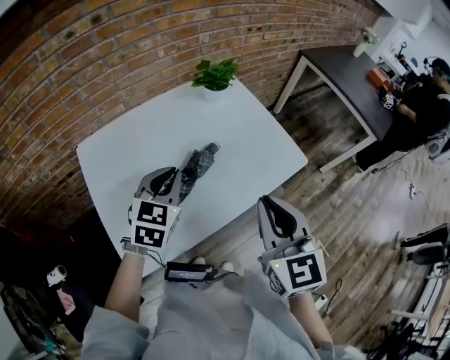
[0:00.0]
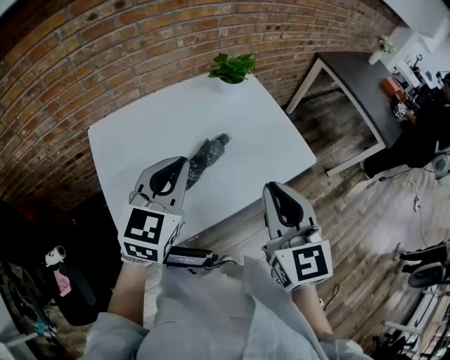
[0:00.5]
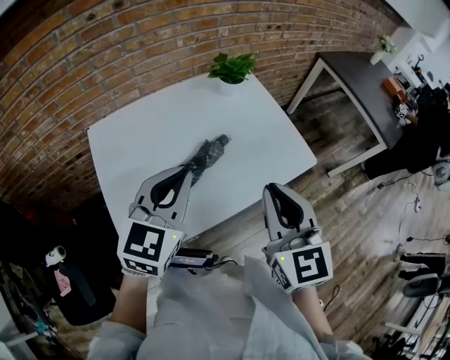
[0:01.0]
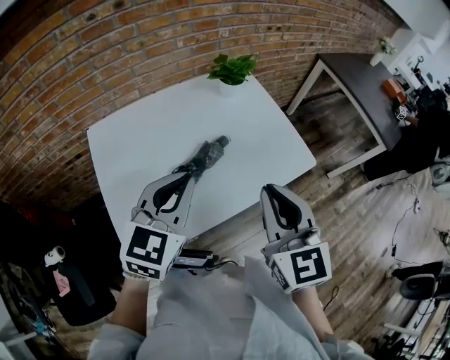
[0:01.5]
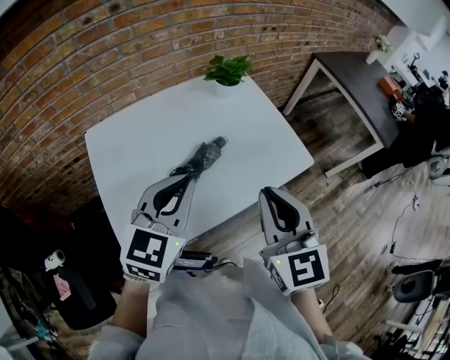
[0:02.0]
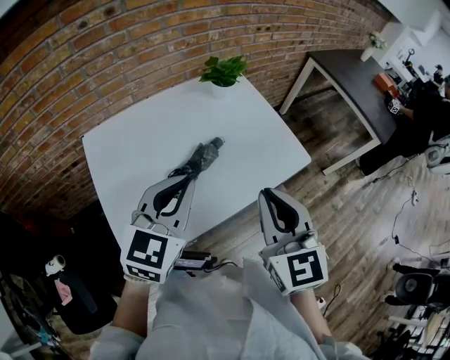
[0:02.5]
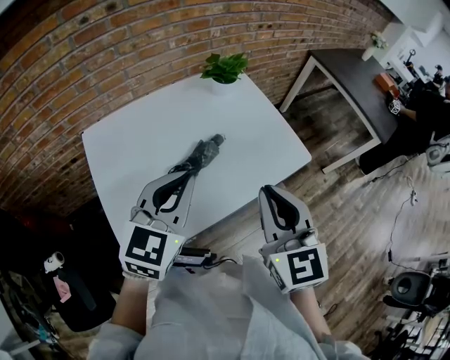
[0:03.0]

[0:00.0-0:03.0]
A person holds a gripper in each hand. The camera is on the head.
0:00.0 to 0:01.5: The left gripper moves upward and backward, approximately 10 cm.
0:01.5 to 0:03.0: Both grippers stay about where they are.

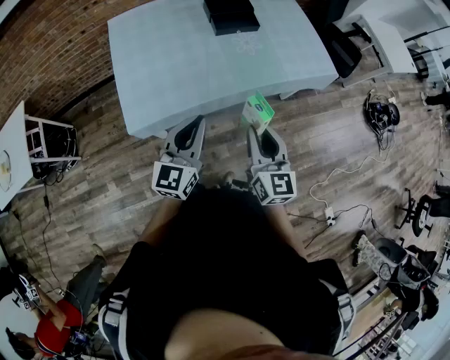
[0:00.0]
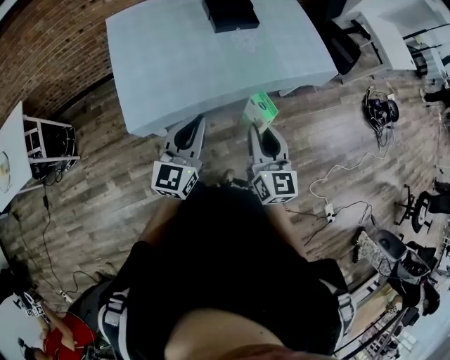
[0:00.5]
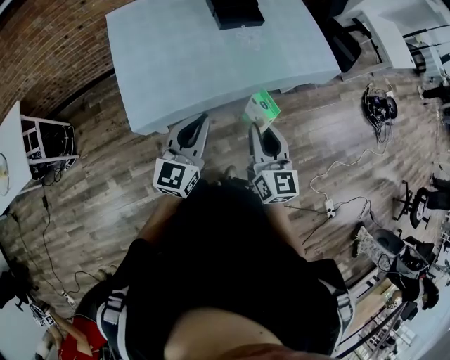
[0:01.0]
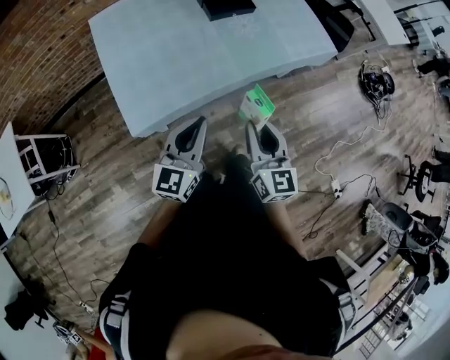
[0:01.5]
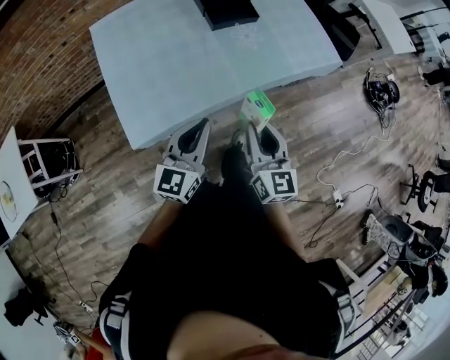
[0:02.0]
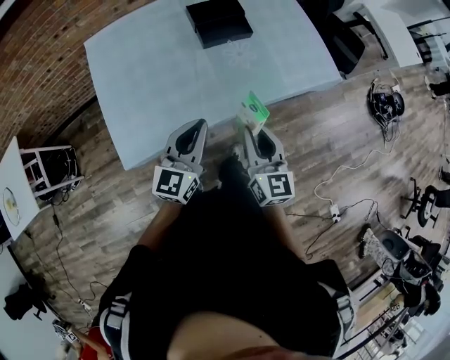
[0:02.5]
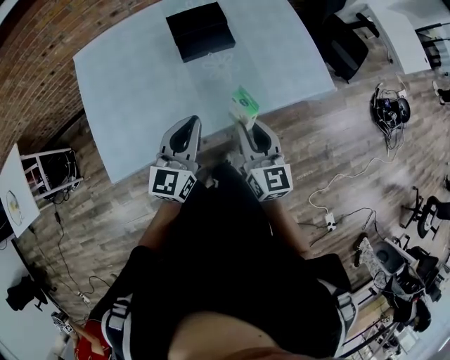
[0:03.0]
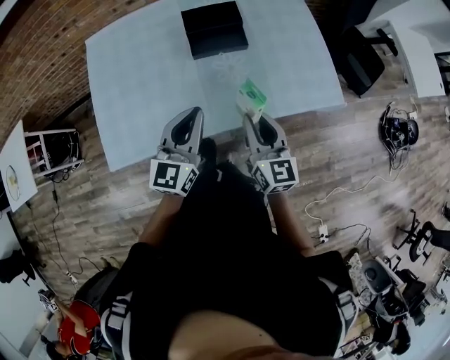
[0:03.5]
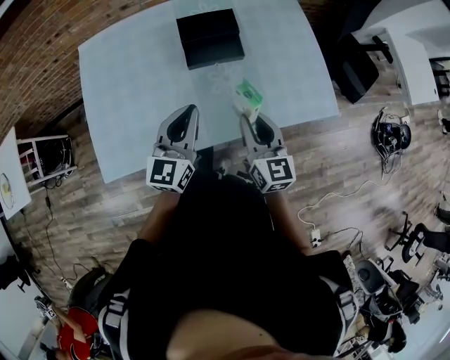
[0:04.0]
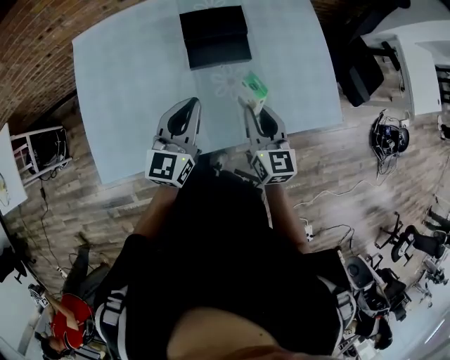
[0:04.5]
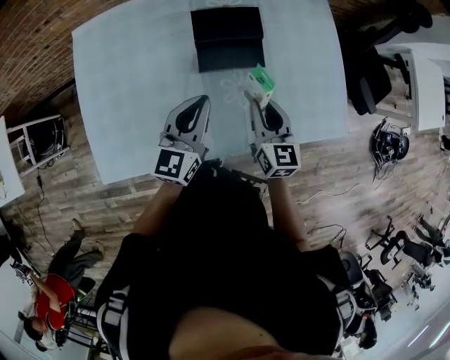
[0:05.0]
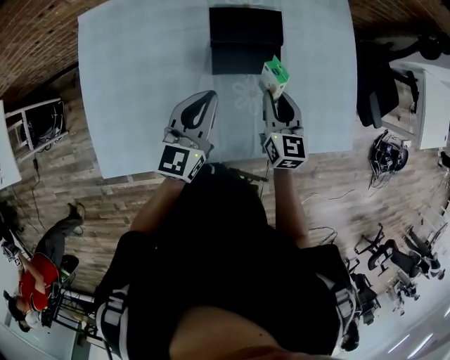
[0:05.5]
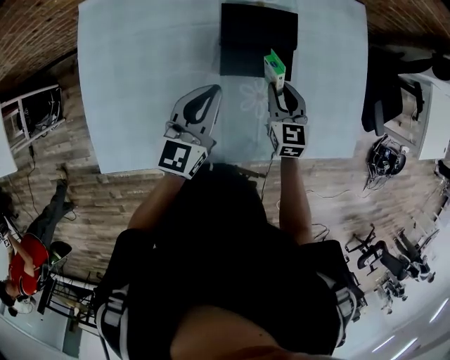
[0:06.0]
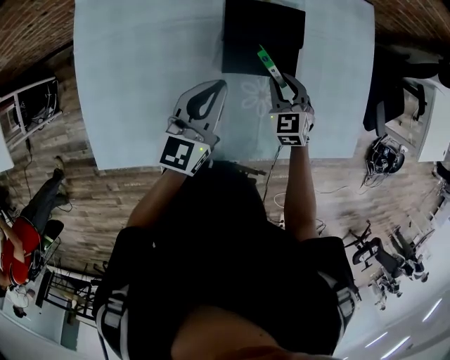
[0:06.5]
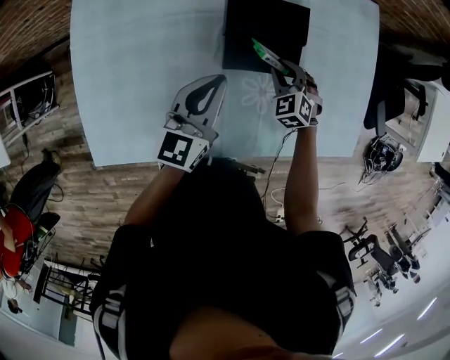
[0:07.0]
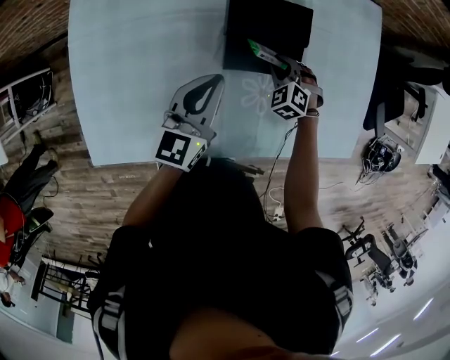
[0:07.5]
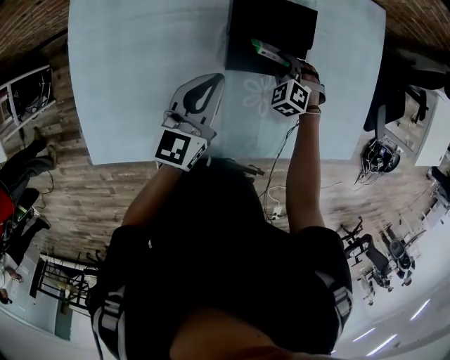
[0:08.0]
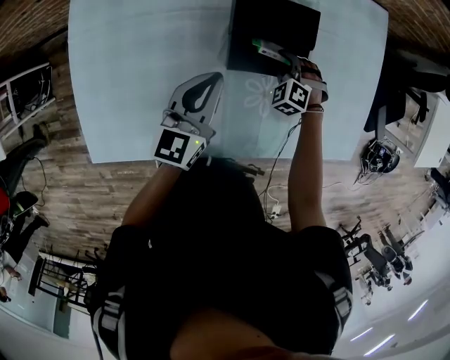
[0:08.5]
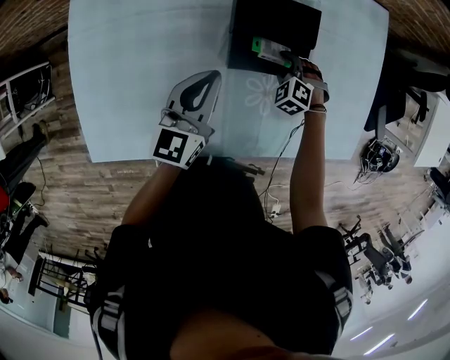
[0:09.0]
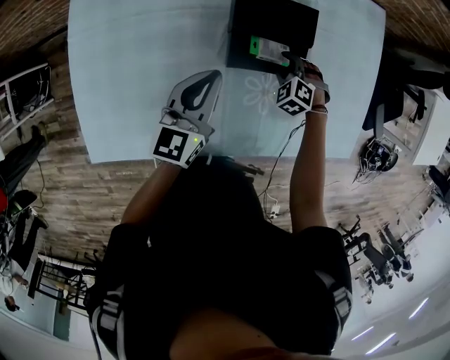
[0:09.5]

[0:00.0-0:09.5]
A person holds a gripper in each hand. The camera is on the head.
0:00.0 to 0:02.0: The grippers both shift forward by some 5 cm.
0:02.0 to 0:04.0: Both grippers move forward and to the right, roughly 30 cm.
0:04.0 to 0:05.5: The right gripper travels forward and downward by about 25 cm. Meanwhile the left gripper heads forward, covering approximately 15 cm.
0:05.5 to 0:07.5: The right gripper shifts roughly 20 cm downward and forward, and twists about 60 degrees counterclockwise, seen from behind. The left gripper goes roughly 10 cm forward and downward.
0:07.5 to 0:09.5: The right gripper opens up.

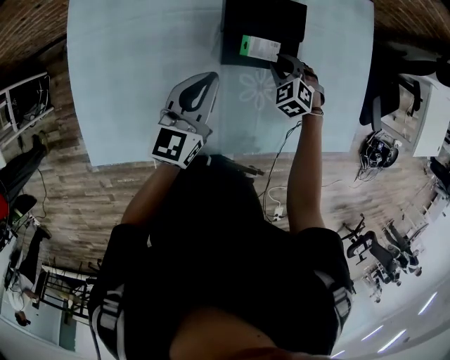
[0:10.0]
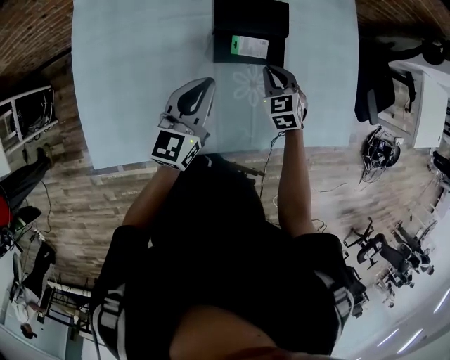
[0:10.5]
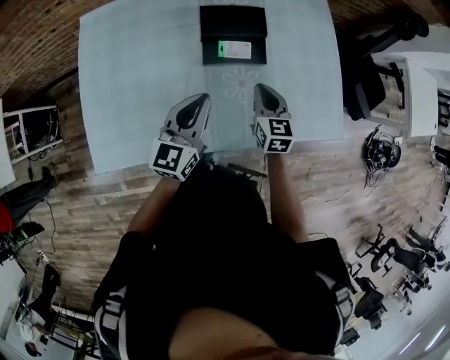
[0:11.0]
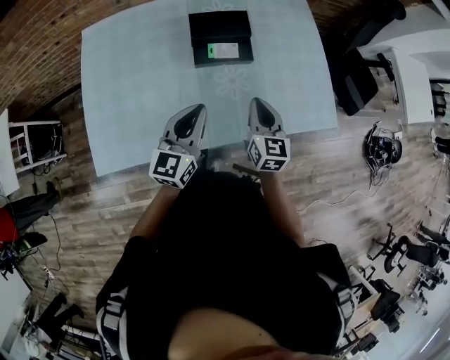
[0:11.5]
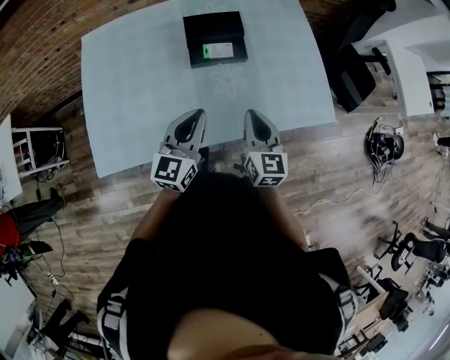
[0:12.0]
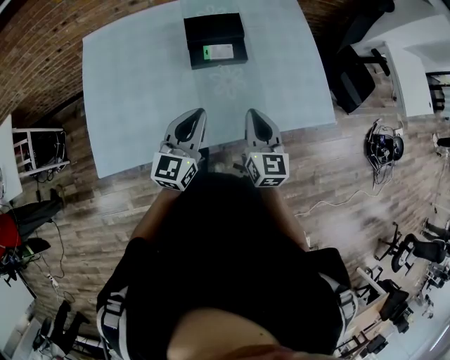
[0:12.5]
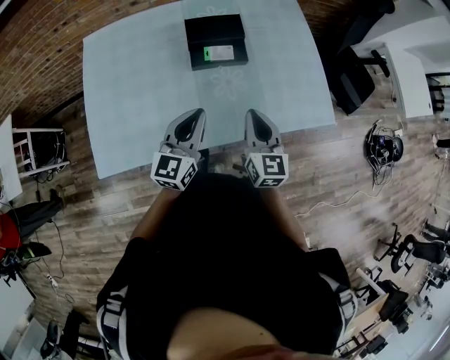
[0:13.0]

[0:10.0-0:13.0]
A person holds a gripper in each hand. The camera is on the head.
0:10.0 to 0:11.5: Both grippers move backward and upward, some 25 cm. The right gripper angles its fingers upward, by some 40 degrees, and closes.
0:11.5 to 0:13.0: The right gripper is displaced backward by approximately 5 cm.

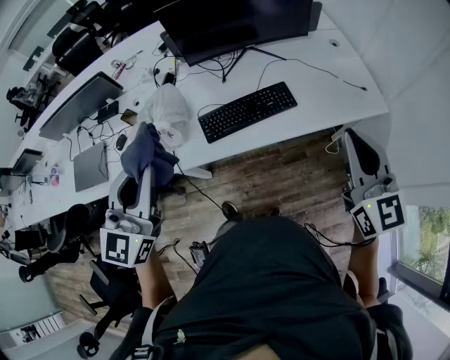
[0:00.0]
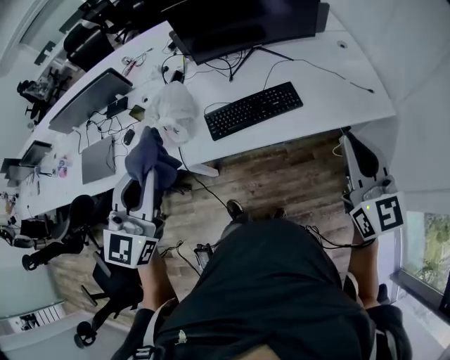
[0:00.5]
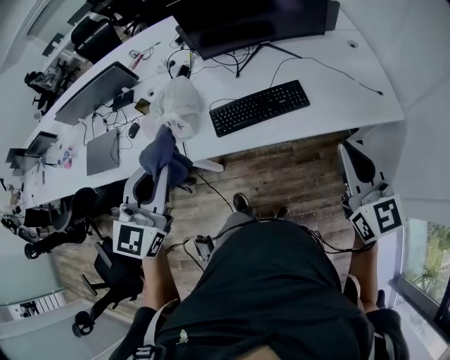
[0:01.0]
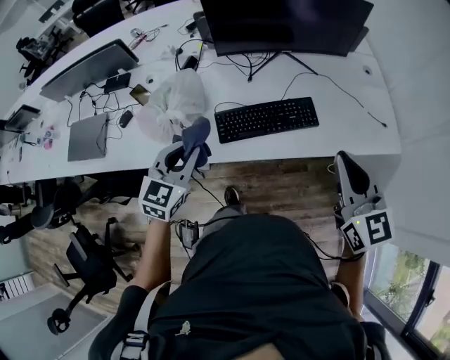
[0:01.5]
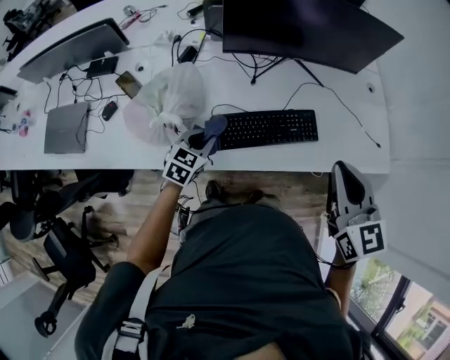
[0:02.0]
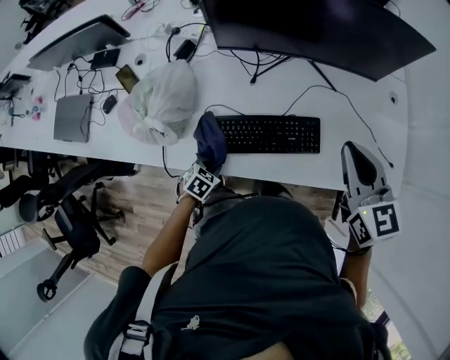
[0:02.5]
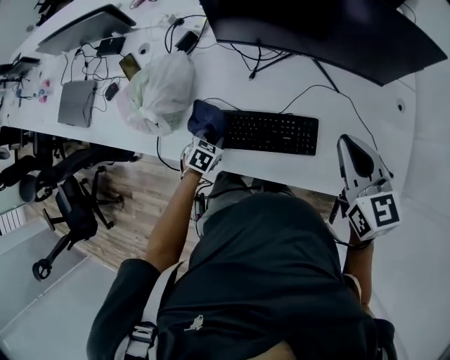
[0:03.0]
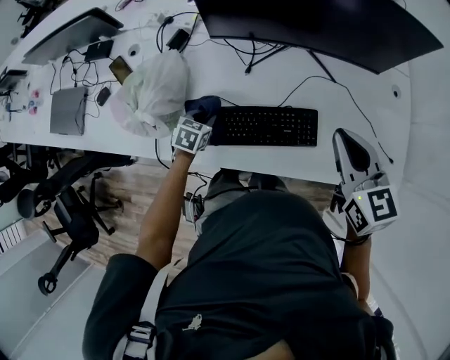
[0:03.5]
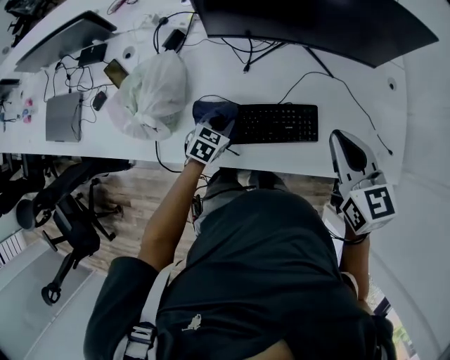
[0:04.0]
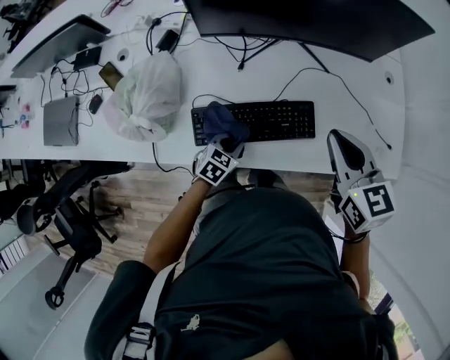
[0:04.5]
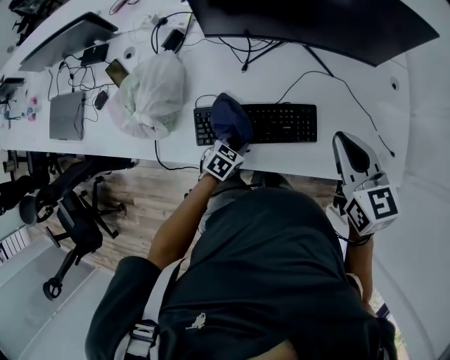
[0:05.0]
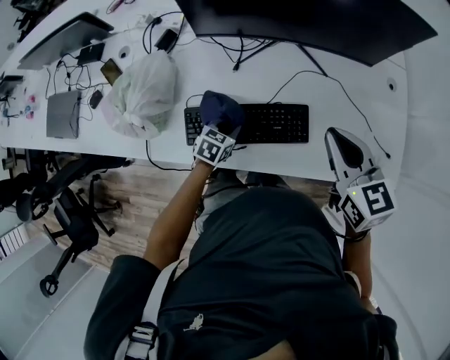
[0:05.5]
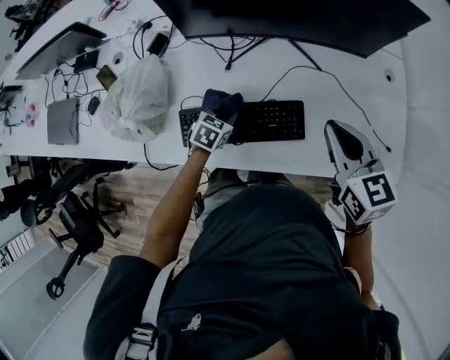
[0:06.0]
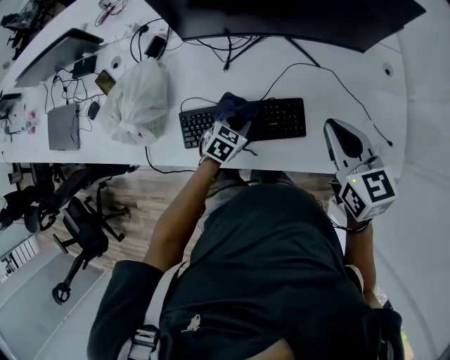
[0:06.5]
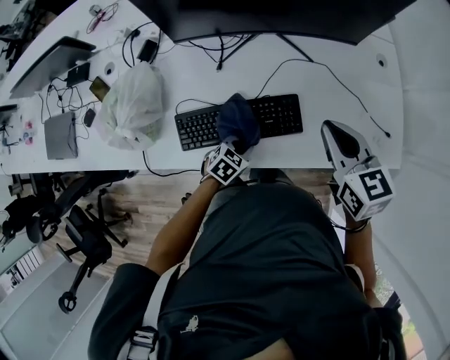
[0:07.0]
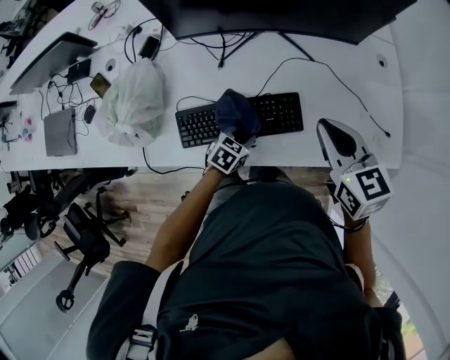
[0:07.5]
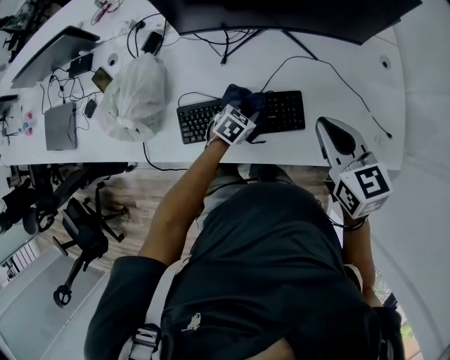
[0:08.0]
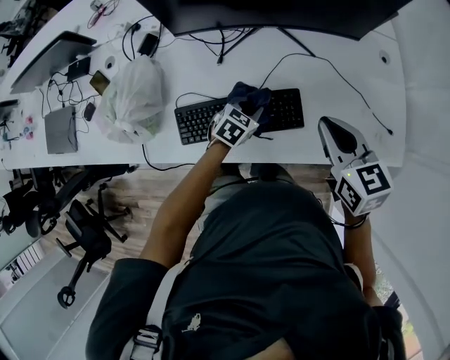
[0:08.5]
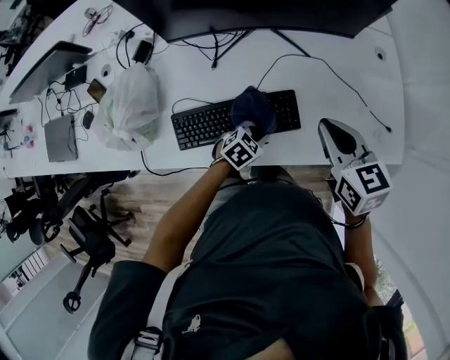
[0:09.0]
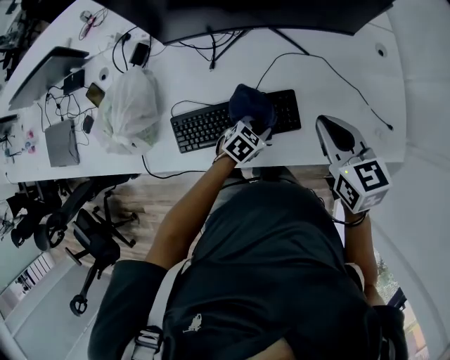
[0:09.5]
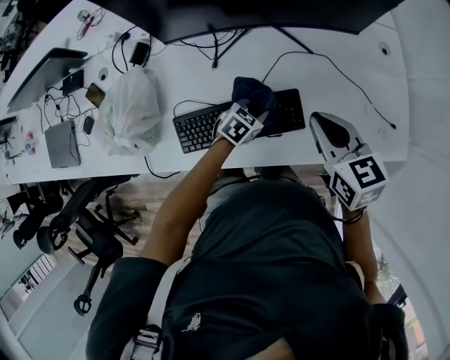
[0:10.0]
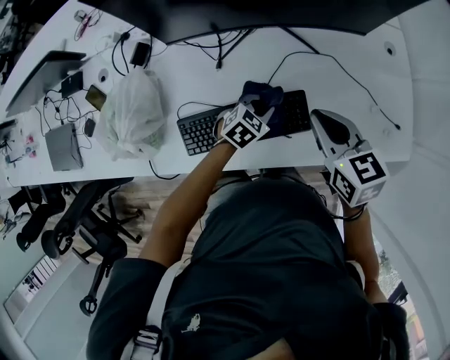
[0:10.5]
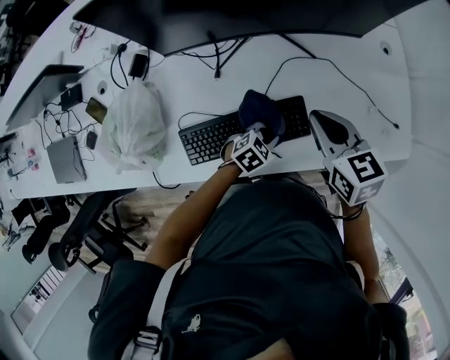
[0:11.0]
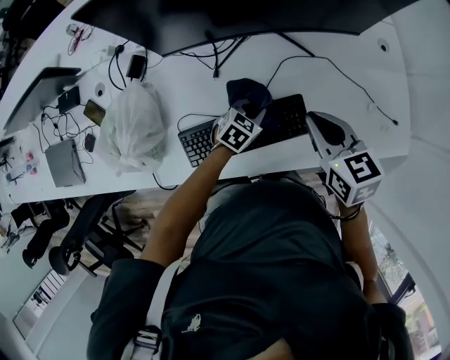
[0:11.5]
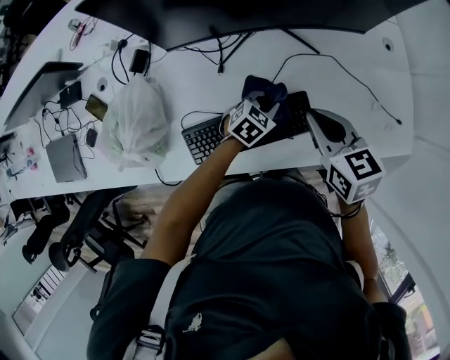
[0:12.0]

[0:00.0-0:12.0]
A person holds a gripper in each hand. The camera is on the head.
0:00.0 to 0:02.0: The right gripper travels forward, to the left and downward by some 20 cm; the left gripper is displaced downward and forward by approximately 40 cm, and angles its fingers downward, by about 30 degrees.
0:02.0 to 0:04.0: The right gripper moves forward, downward and to the right, about 20 cm, while the left gripper goes roughly 15 cm to the right, downward and forward.
0:04.0 to 0:06.0: Both grippers travel together to the right, about 5 cm.
0:06.0 to 0:08.0: The left gripper is displaced to the right by approximately 10 cm, and goes backward and returns, roughly 10 cm each way.
0:10.0 to 0:12.0: The right gripper shifts by approximately 5 cm.
